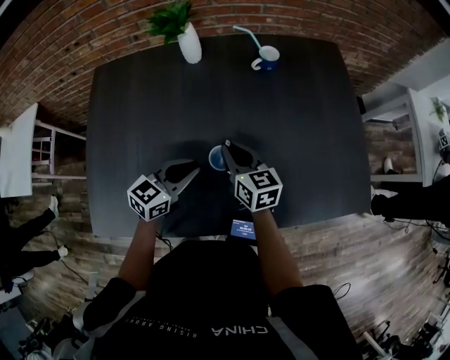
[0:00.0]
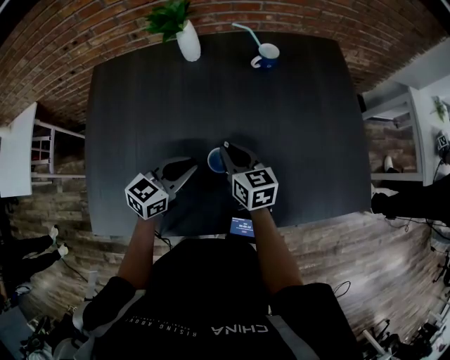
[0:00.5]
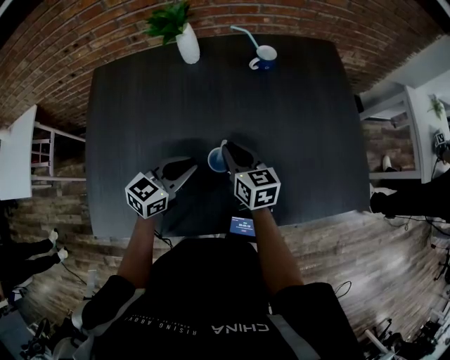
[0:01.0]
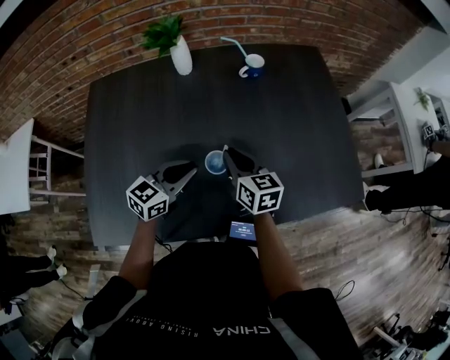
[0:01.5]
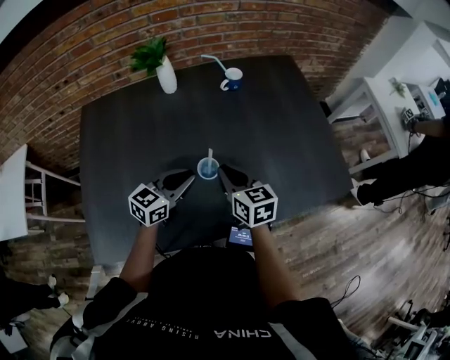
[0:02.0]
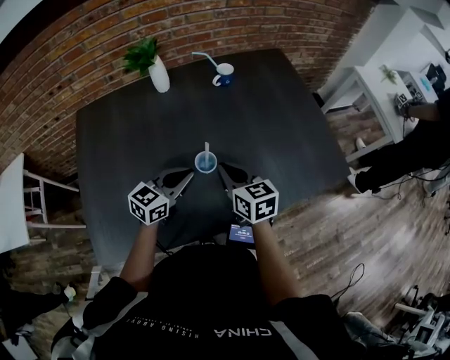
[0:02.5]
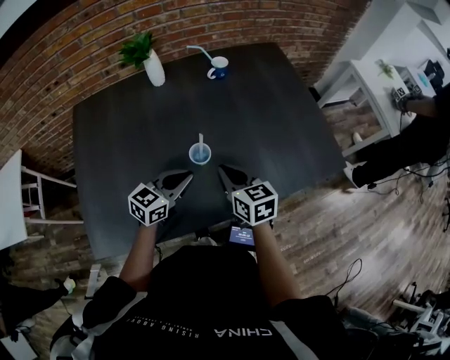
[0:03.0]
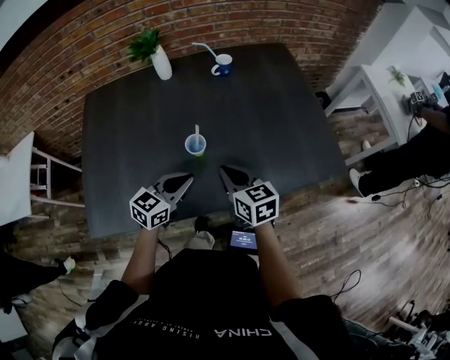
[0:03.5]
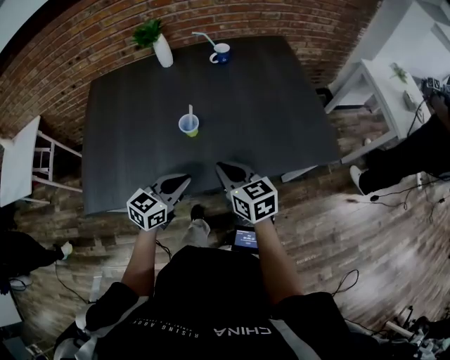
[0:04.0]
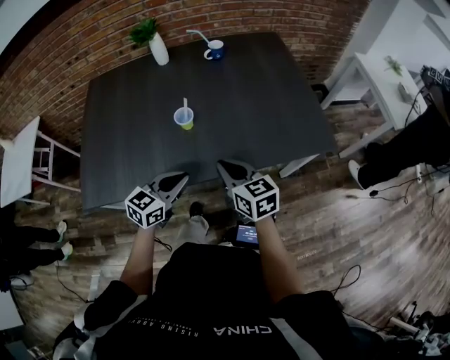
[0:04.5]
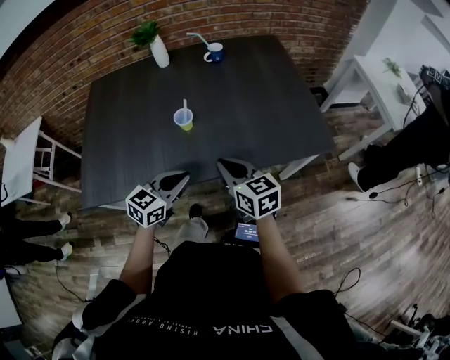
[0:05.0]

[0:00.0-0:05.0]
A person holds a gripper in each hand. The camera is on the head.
0:00.0 to 0:02.5: The right gripper heads backward, covering approximately 10 cm.
0:02.5 to 0:05.0: Both grippers travel together backward and to the right, roughly 20 cm.

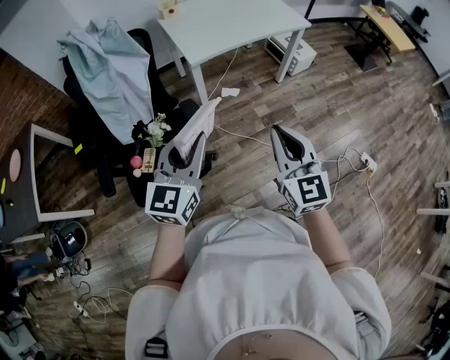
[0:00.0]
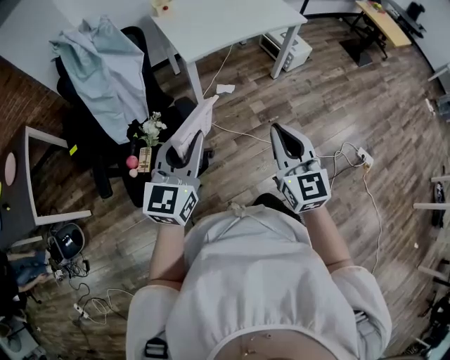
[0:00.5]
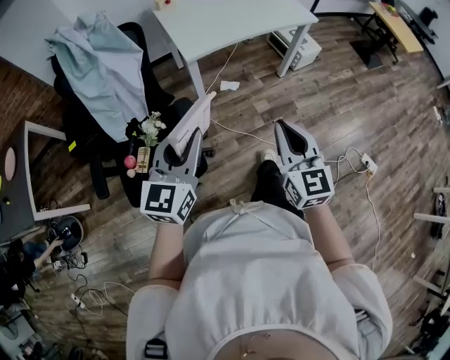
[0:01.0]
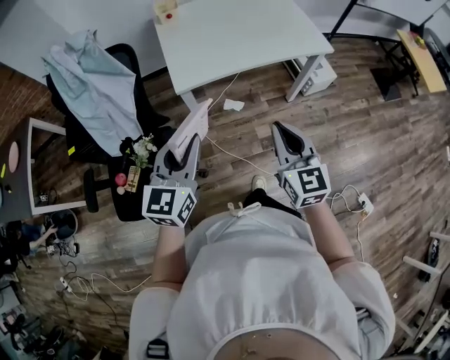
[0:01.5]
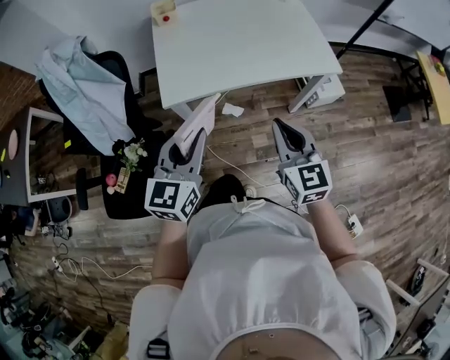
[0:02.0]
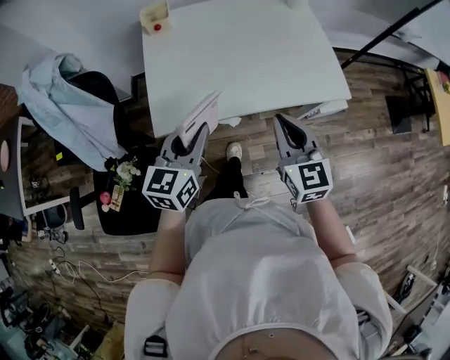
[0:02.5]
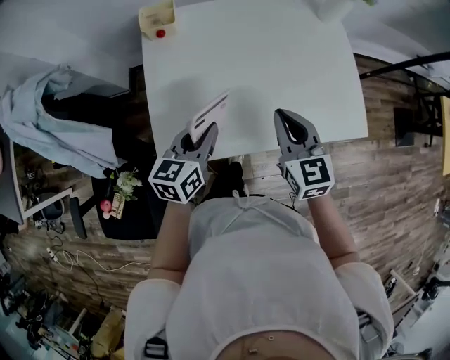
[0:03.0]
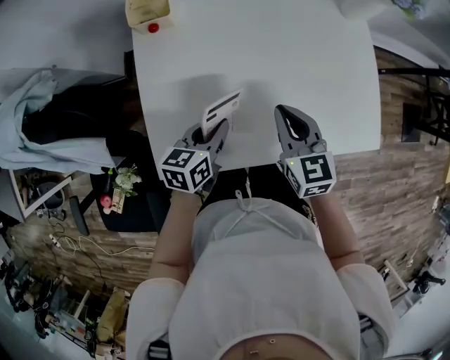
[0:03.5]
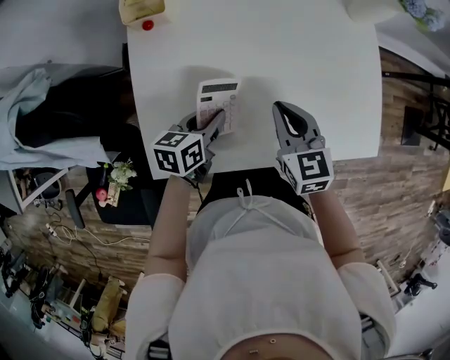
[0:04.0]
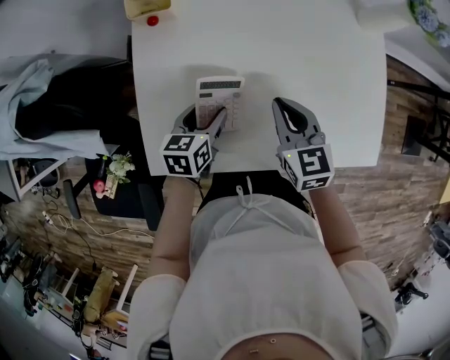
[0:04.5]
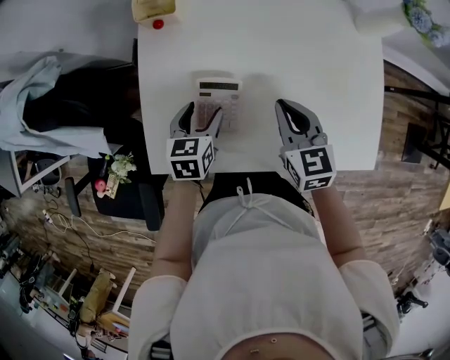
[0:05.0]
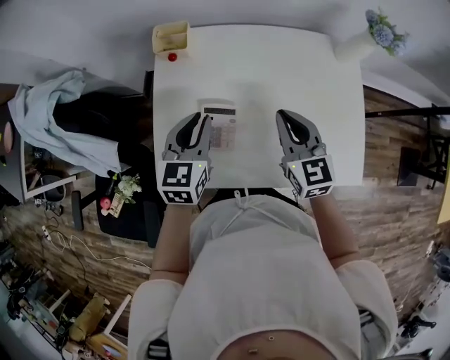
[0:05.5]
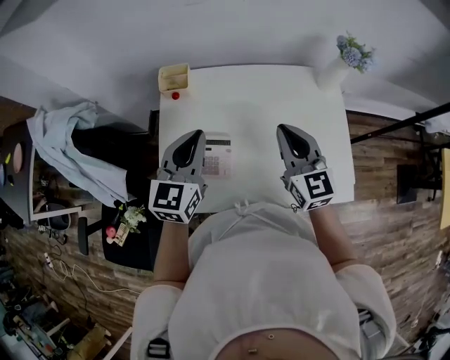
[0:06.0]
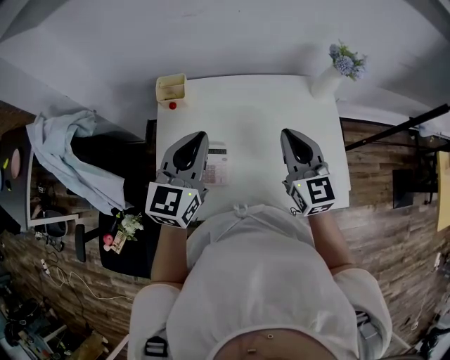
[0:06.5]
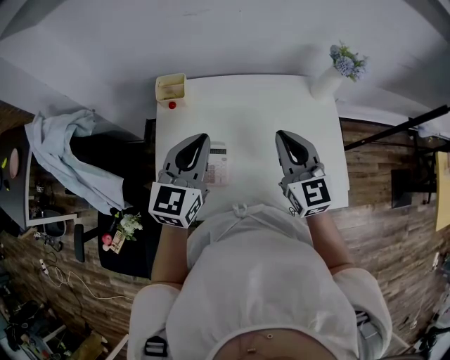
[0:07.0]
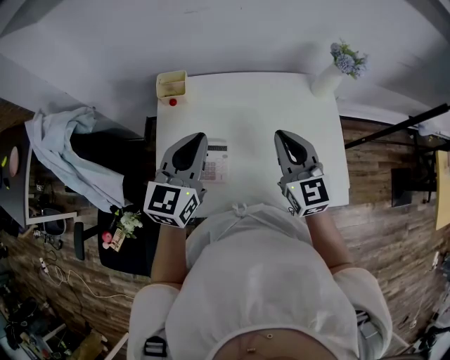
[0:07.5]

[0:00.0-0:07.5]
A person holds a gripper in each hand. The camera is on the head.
0:00.0 to 0:02.0: Both grippers are carried forward and to the right, approximately 40 cm.
0:02.0 to 0:04.0: The pair of grippers is taken forward, roughly 40 cm. The right gripper swivels approximately 20 degrees, while the left gripper heads downward, covering some 25 cm, and rotates roughly 50 degrees.
0:04.0 to 0:05.5: The right gripper shifts some 10 cm upward. Meanwhile the left gripper shifts approximately 15 cm upward, turns by approximately 40 degrees, and opens and closes again.
0:05.5 to 0:07.5: The two grippers go some 10 cm upward.

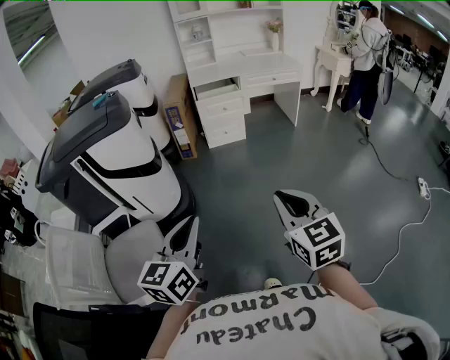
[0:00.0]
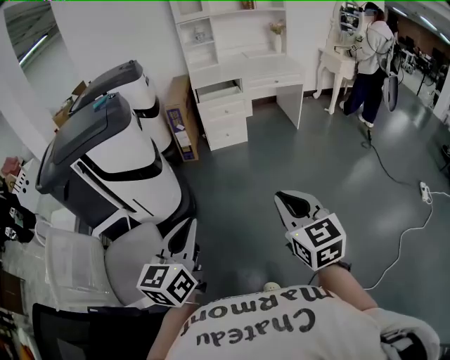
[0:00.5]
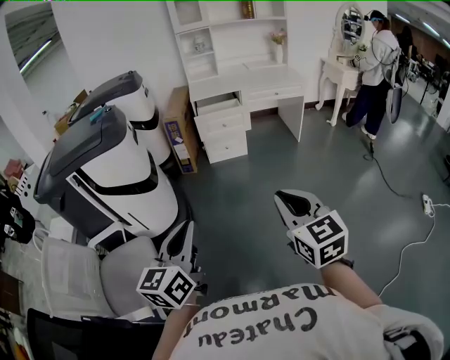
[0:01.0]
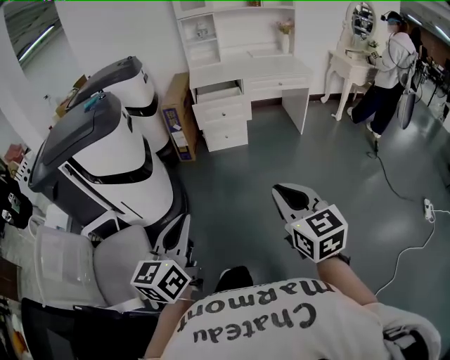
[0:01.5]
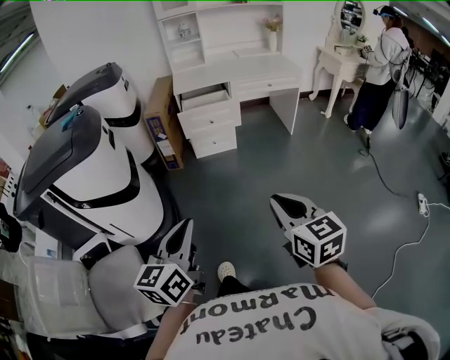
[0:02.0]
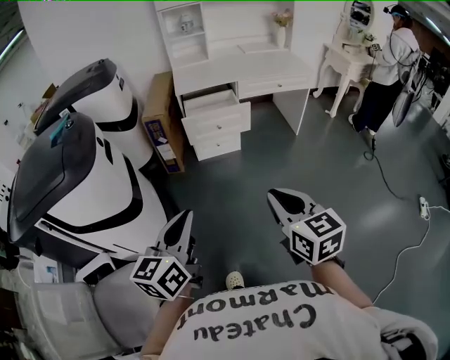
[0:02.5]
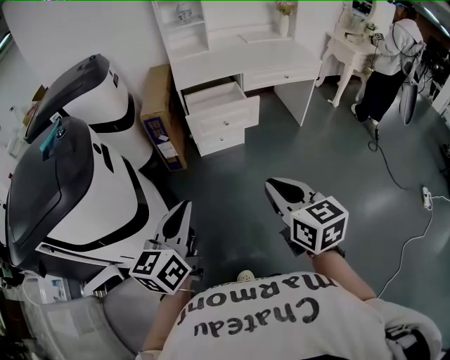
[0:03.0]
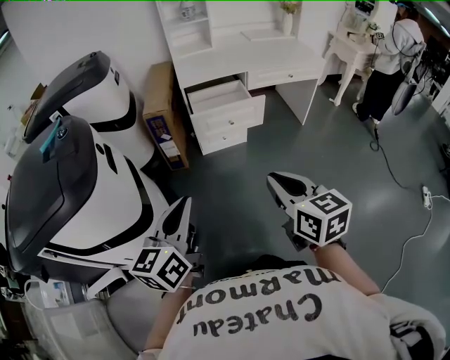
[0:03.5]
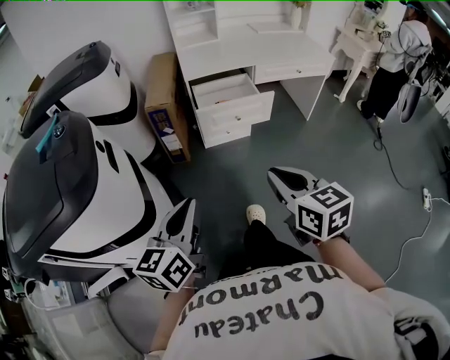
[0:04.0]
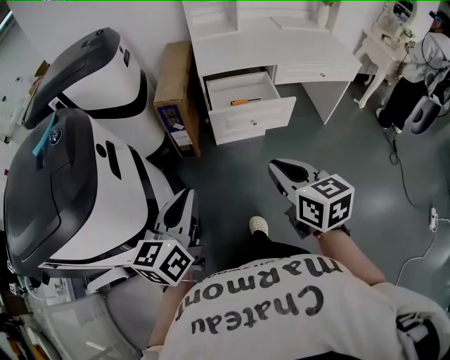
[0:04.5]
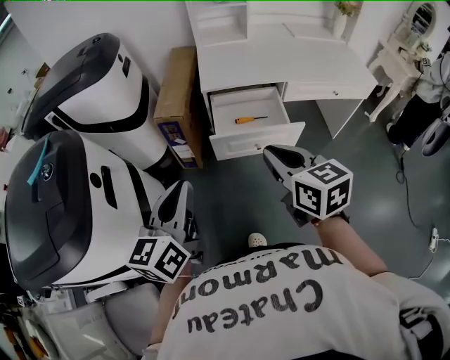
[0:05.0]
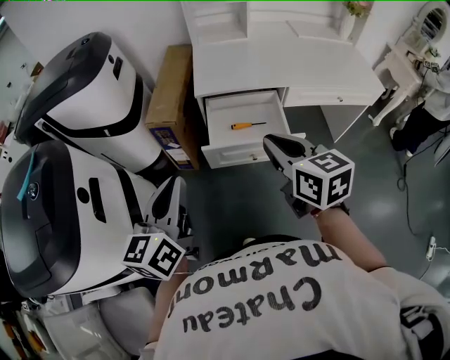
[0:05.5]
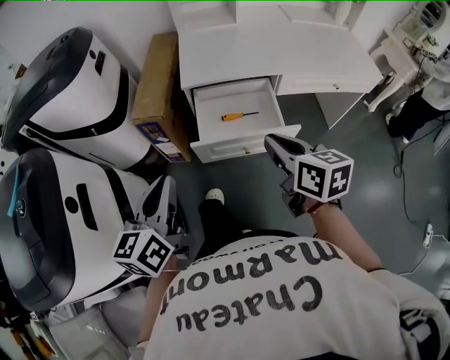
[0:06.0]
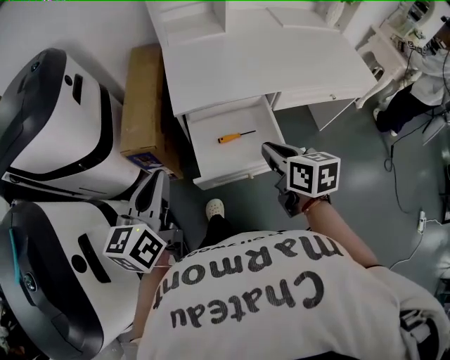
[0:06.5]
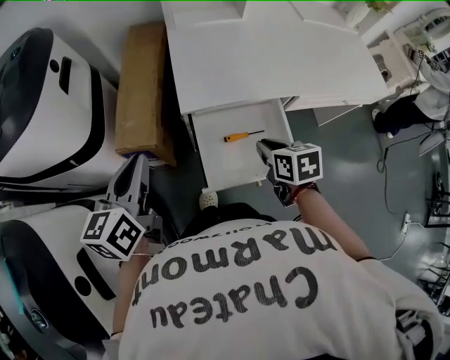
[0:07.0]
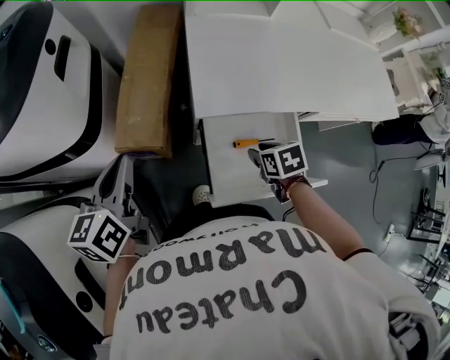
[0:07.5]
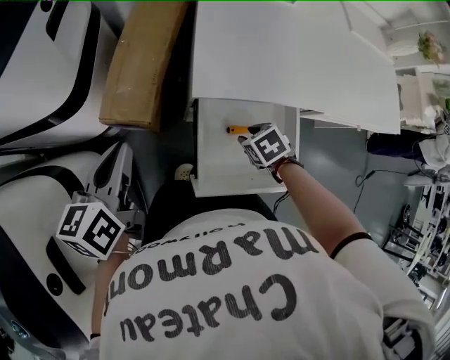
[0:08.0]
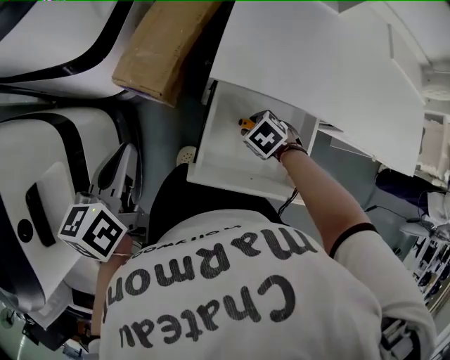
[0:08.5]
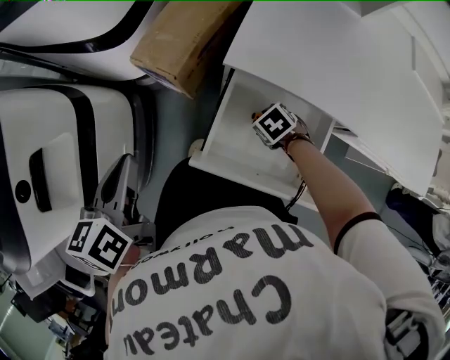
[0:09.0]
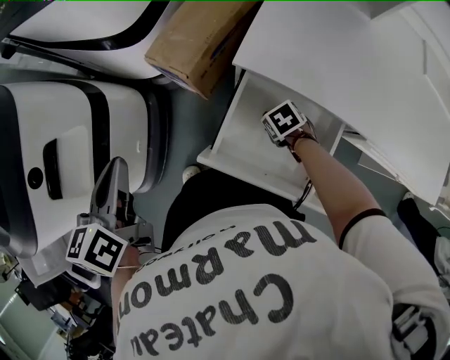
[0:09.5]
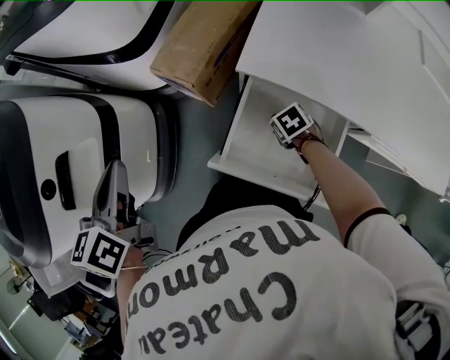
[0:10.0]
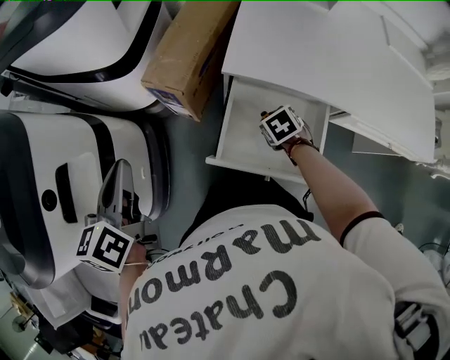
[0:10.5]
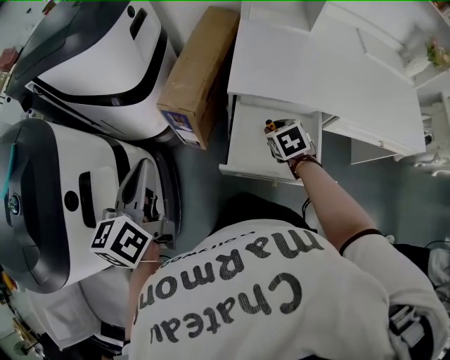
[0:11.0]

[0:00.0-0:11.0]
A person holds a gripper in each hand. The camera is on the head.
0:00.0 to 0:02.0: The left gripper is displaced forward by some 20 cm; the right gripper moves forward and to the right, approximately 25 cm.
0:02.0 to 0:03.5: The grippers both shift forward and to the left by roughly 30 cm.
0:03.5 to 0:05.5: The two grippers go approximately 35 cm forward.
0:05.5 to 0:07.5: The right gripper shifts approximately 40 cm downward and forward, points its fingers about 50 degrees further downward, and opens. The left gripper goes some 35 cm forward.
0:07.5 to 0:09.0: The right gripper travels downward by approximately 10 cm, and rotates around the line of its fingers by about 50 degrees, counterclockwise from behind, while the left gripper shifts by about 15 cm, and rotates roughly 30 degrees.
0:09.0 to 0:11.0: The right gripper travels upward by approximately 15 cm, and rotates approximately 40 degrees; the left gripper heads upward, covering roughly 10 cm, and swivels about 20 degrees.

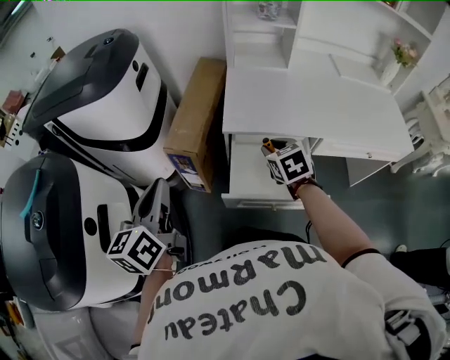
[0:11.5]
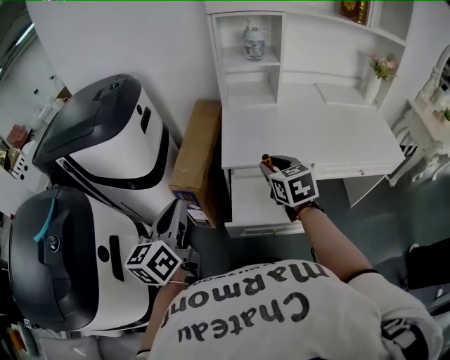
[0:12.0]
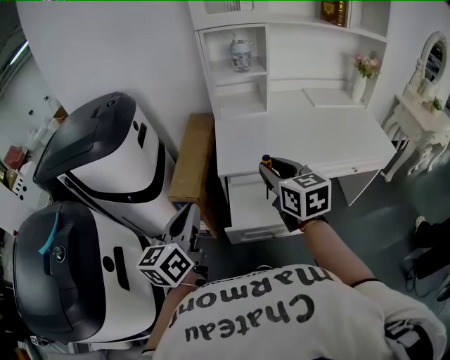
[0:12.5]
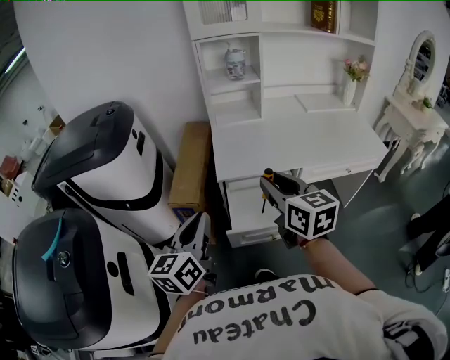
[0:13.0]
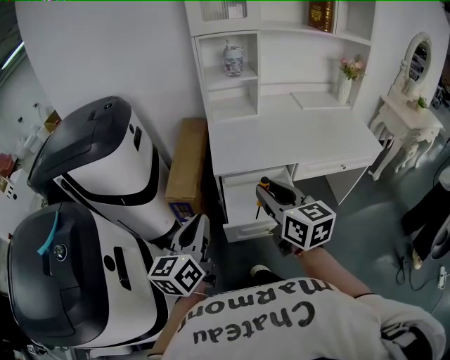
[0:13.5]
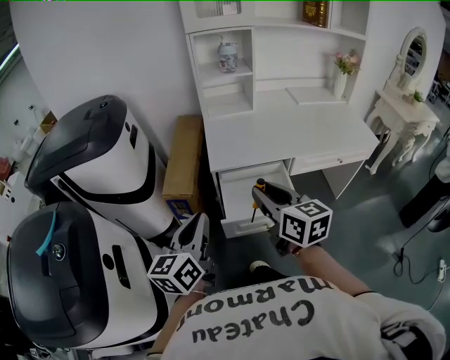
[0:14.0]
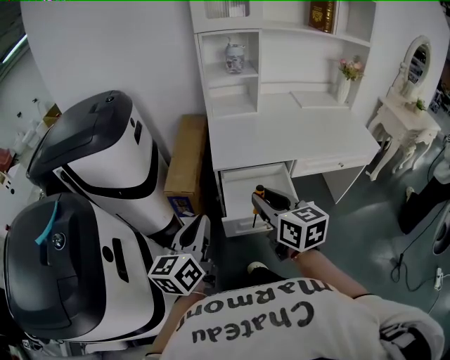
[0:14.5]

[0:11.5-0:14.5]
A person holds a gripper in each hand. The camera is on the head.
0:11.5 to 0:13.0: The left gripper travels to the right by roughly 10 cm. The right gripper shifts about 25 cm upward and backward, and tilts its fingers approximately 30 degrees upward.
0:13.0 to 0:14.5: The left gripper changes place by some 5 cm. Meanwhile the right gripper goes about 5 cm backward.
